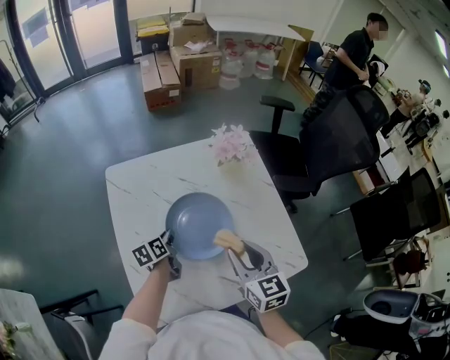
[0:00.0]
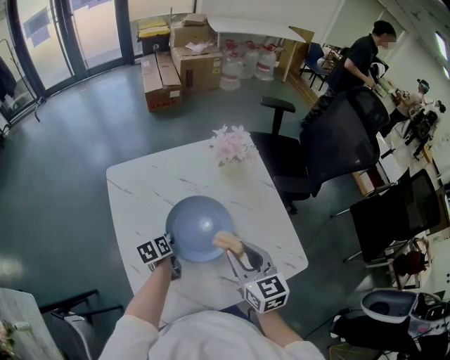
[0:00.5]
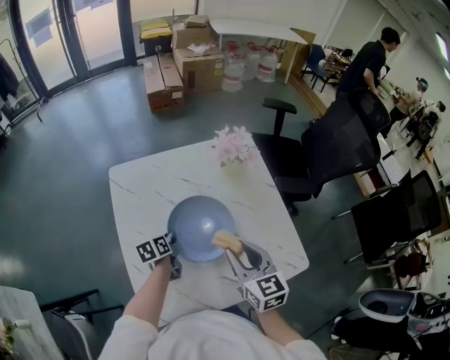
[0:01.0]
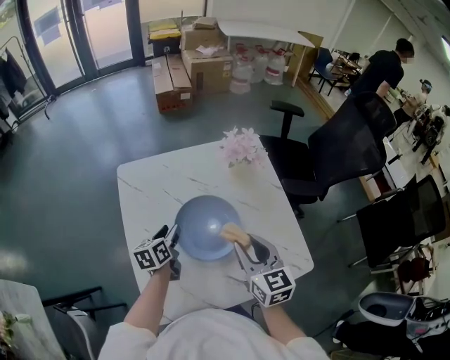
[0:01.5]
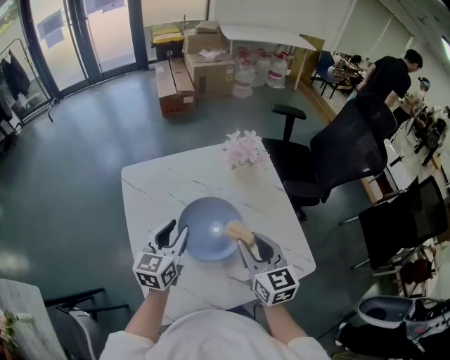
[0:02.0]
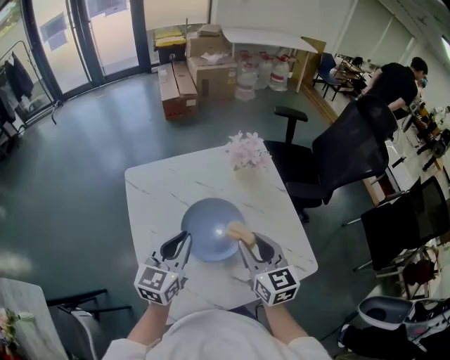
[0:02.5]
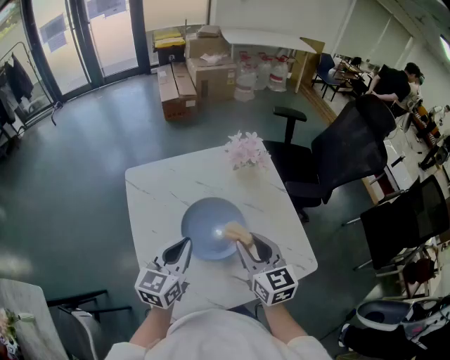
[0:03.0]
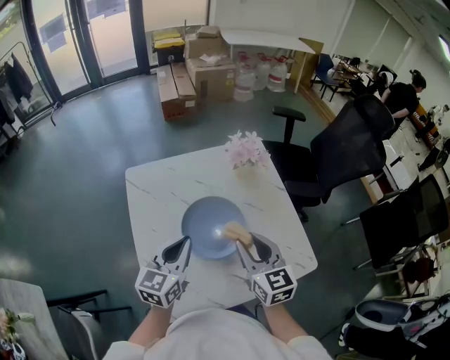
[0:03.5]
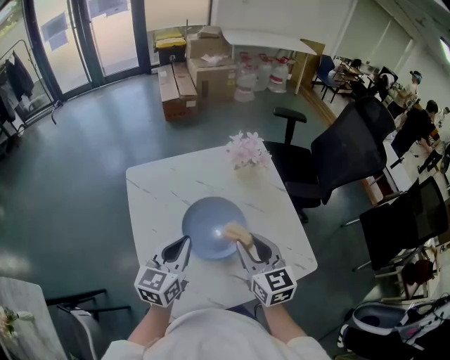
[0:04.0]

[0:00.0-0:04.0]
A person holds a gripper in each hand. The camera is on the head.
0:00.0 to 0:02.0: The left gripper heads upward, covering approximately 20 cm, changes its angle by about 50 degrees, and opens its fingers.
0:02.0 to 0:04.0: The left gripper shifts roughly 5 cm backward, and closes.

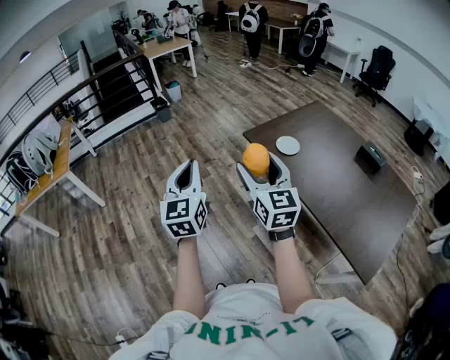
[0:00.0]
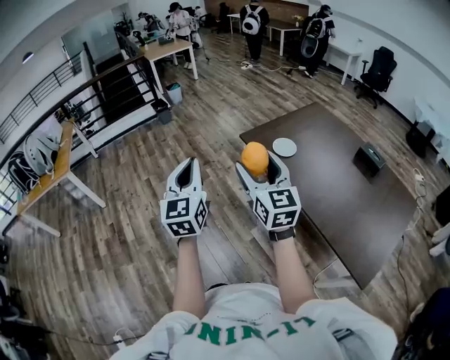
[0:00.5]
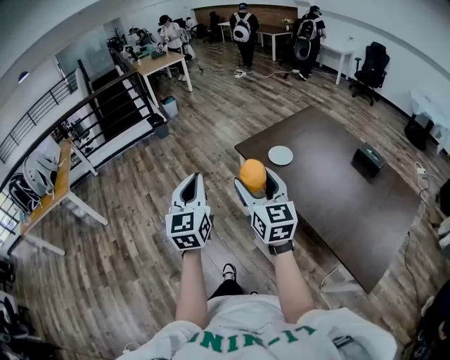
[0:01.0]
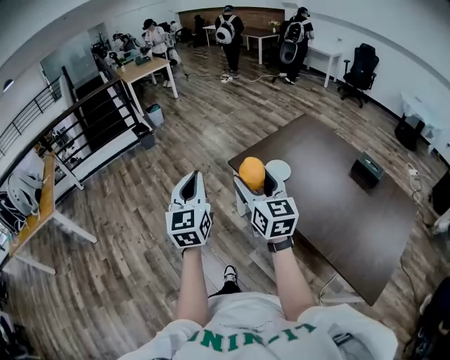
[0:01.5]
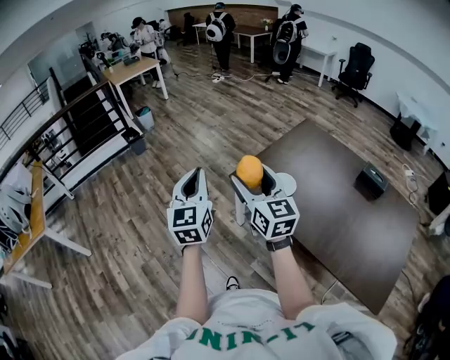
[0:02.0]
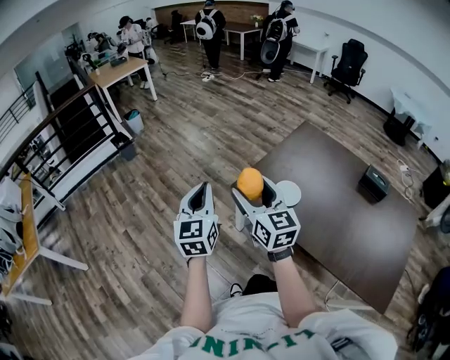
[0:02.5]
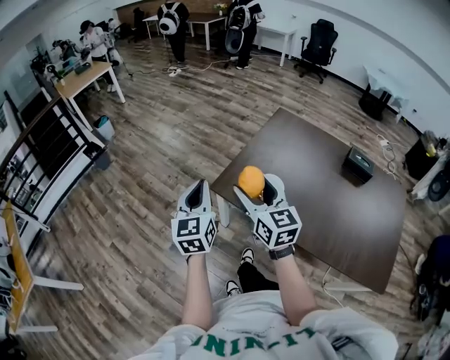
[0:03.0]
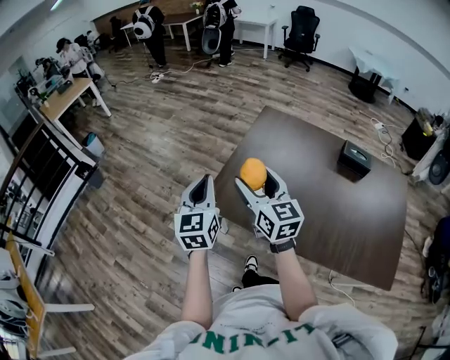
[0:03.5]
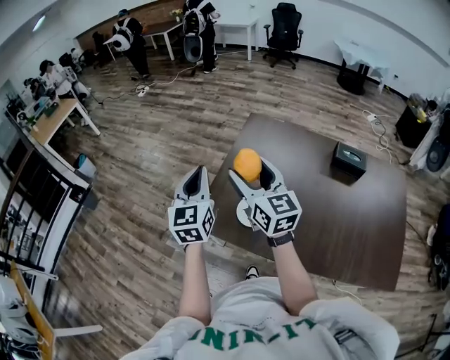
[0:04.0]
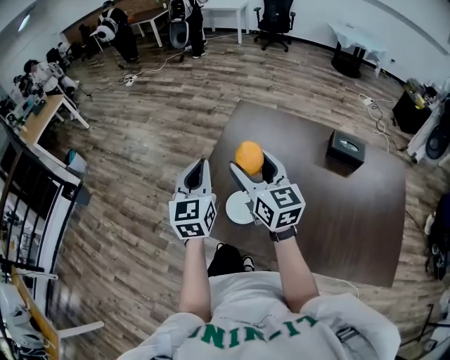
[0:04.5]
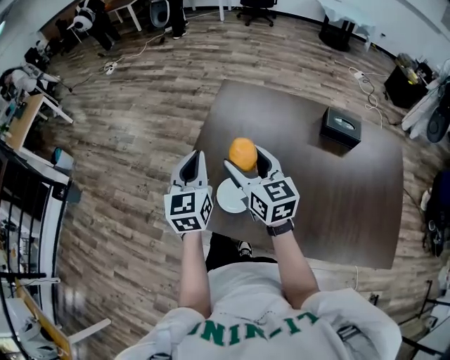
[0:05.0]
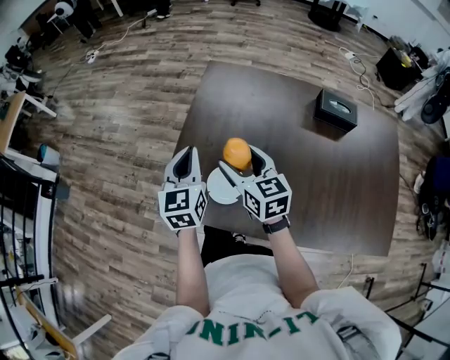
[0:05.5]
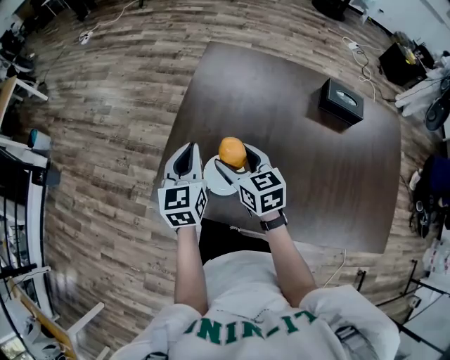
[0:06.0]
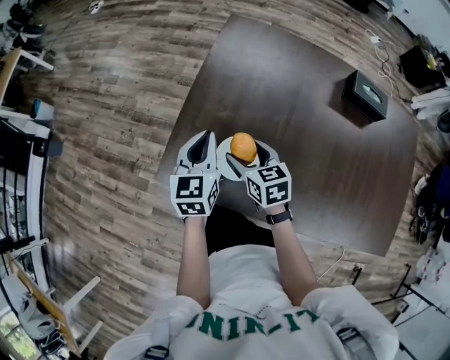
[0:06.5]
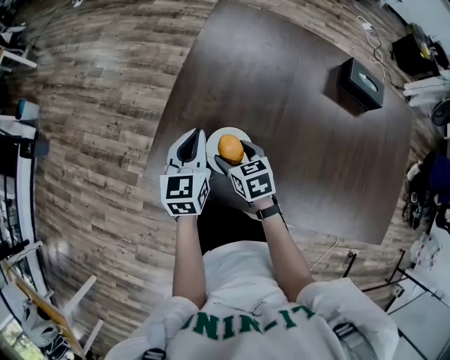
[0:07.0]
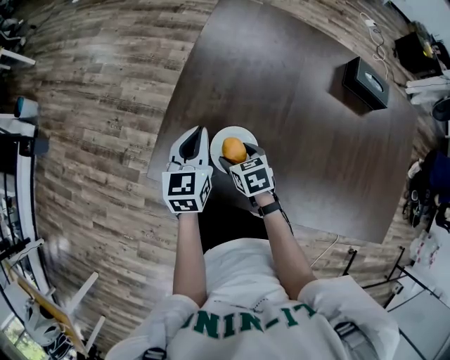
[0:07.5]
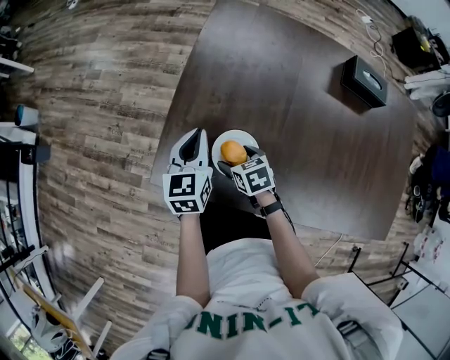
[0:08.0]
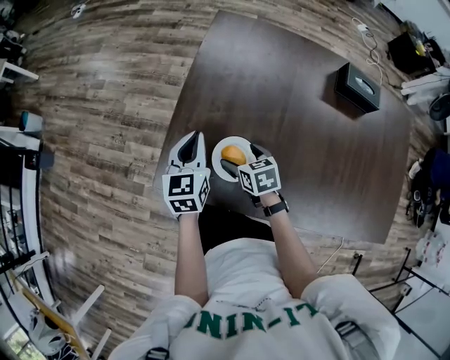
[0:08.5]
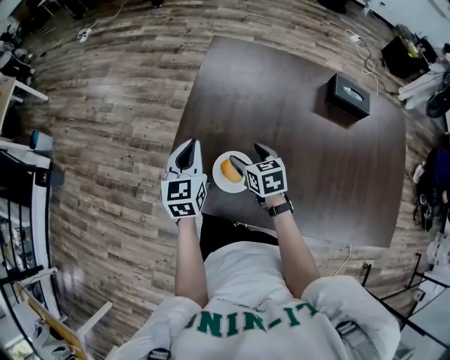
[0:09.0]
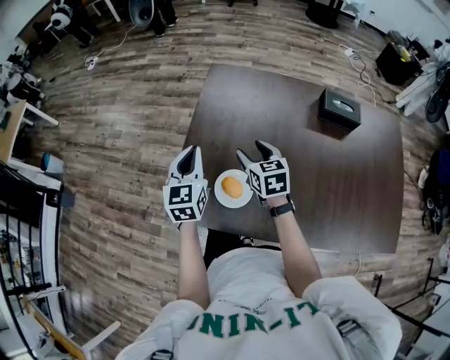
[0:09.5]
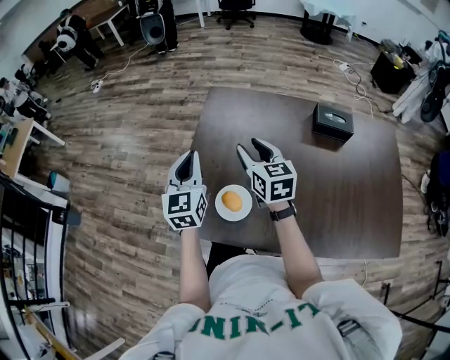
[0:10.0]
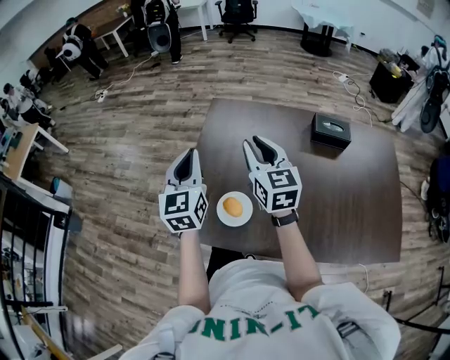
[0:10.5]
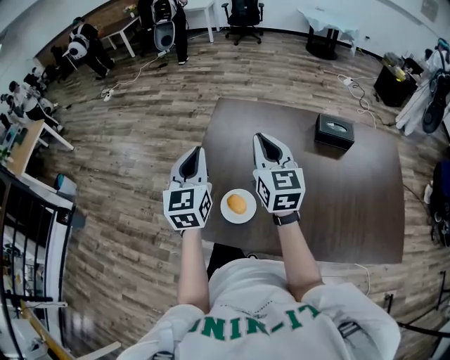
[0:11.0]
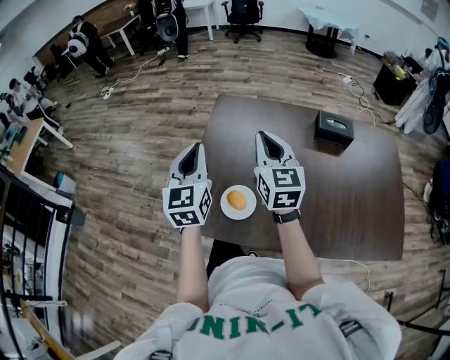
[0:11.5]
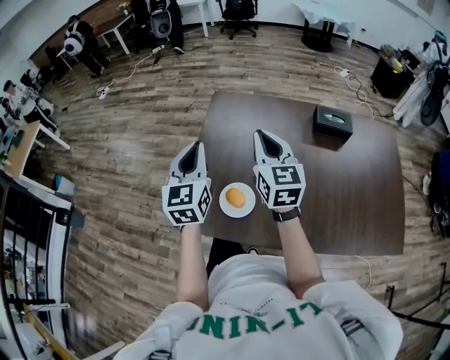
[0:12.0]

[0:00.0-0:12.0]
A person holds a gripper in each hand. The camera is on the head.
0:00.0 to 0:02.0: The grippers both shift forward by roughly 30 cm.
0:02.0 to 0:04.0: Both grippers travel together forward and to the right, about 35 cm. The left gripper changes its angle by roughly 30 degrees. Meanwhile the right gripper turns by some 20 degrees.
0:04.0 to 0:06.0: The left gripper shifts about 25 cm downward, to the right and forward; the right gripper goes about 25 cm downward, and rotates some 30 degrees.
0:06.0 to 0:08.0: The right gripper is displaced downward by about 20 cm, and changes its angle by about 30 degrees. Meanwhile the left gripper shifts some 10 cm downward.
0:08.0 to 0:10.0: The left gripper goes roughly 20 cm upward, and turns by some 20 degrees; the right gripper heads upward, covering about 30 cm, points its fingers some 40 degrees further upward, and closes its fingers.
0:10.0 to 0:12.0: The right gripper heads upward, covering approximately 10 cm, and closes its fingers, while the left gripper heads upward, covering approximately 5 cm.

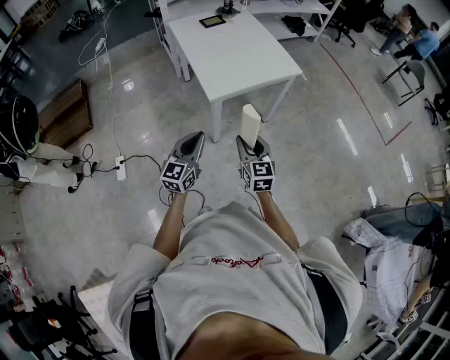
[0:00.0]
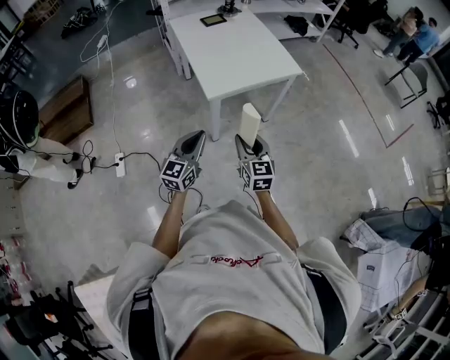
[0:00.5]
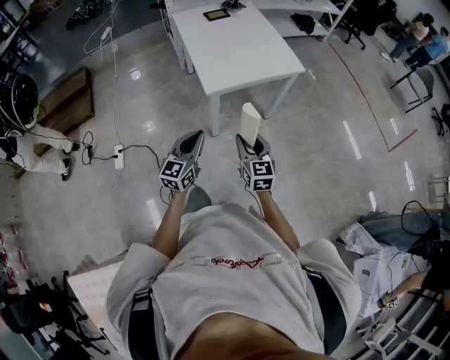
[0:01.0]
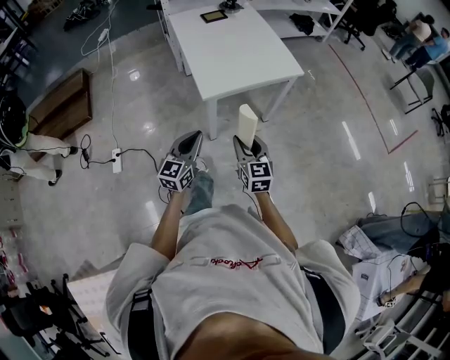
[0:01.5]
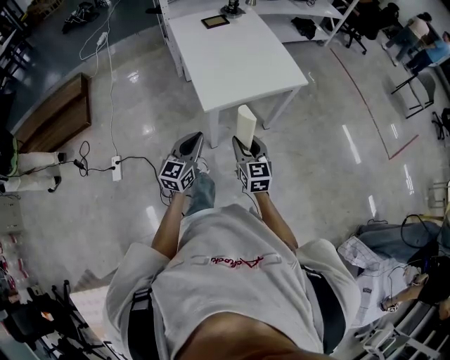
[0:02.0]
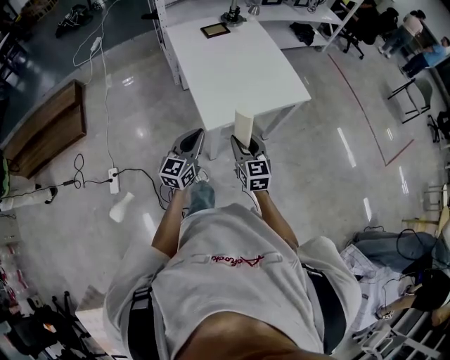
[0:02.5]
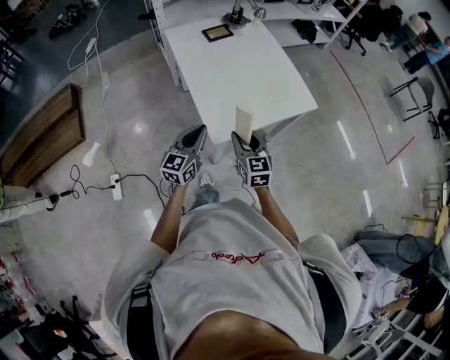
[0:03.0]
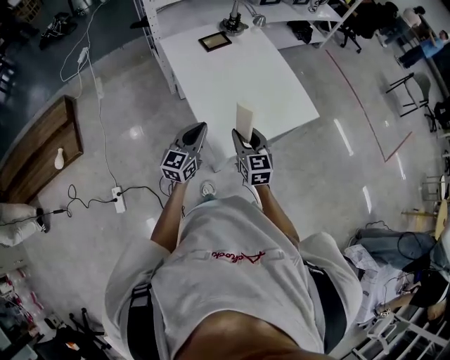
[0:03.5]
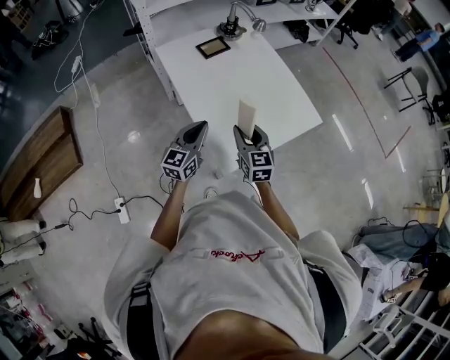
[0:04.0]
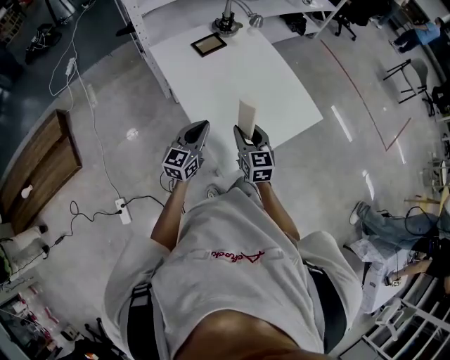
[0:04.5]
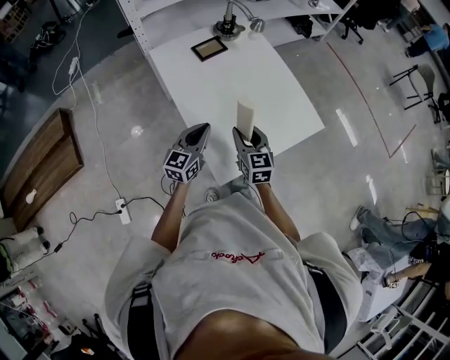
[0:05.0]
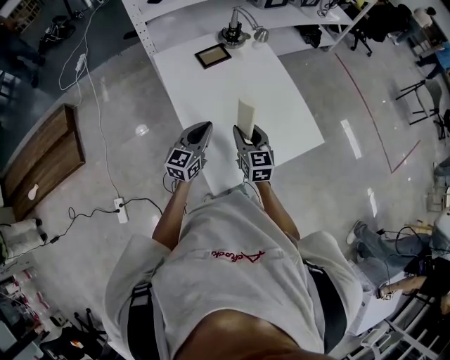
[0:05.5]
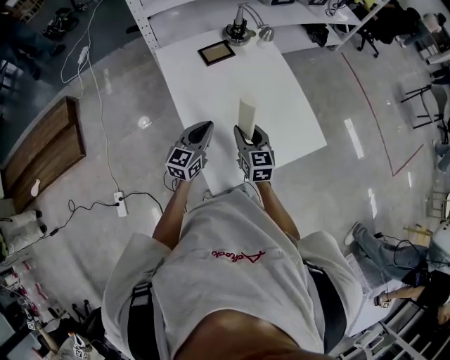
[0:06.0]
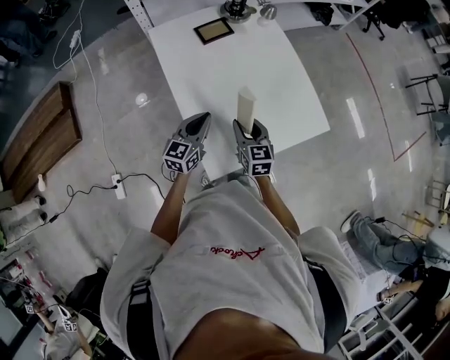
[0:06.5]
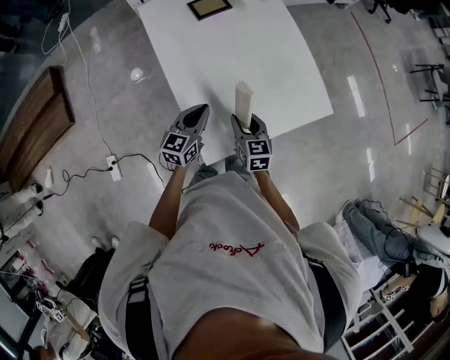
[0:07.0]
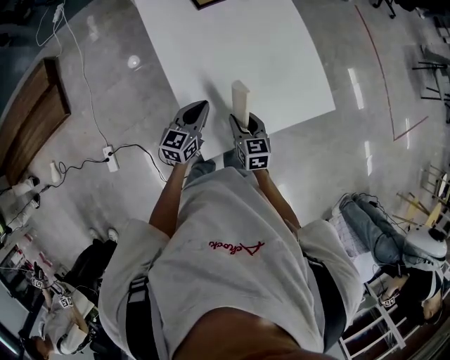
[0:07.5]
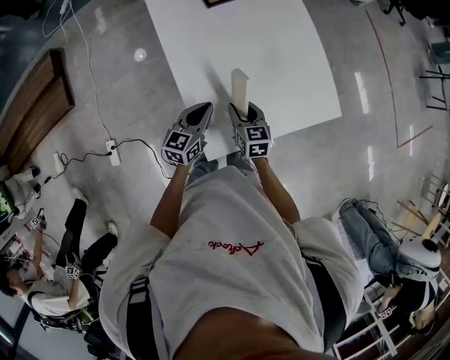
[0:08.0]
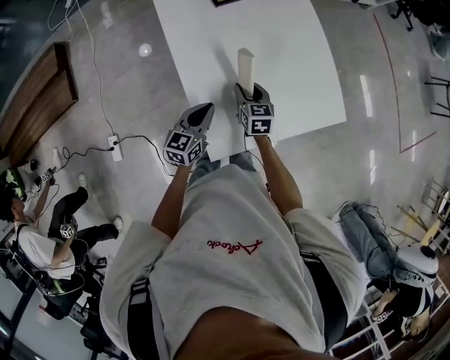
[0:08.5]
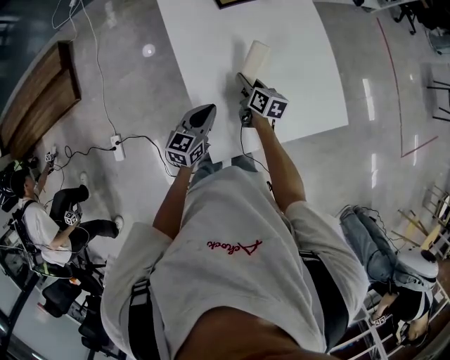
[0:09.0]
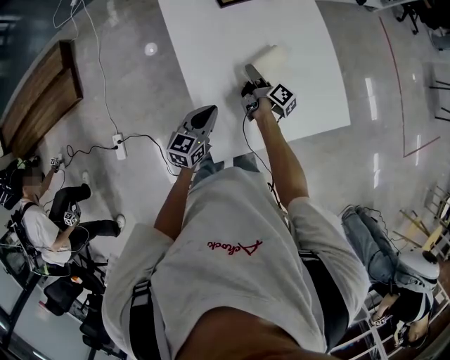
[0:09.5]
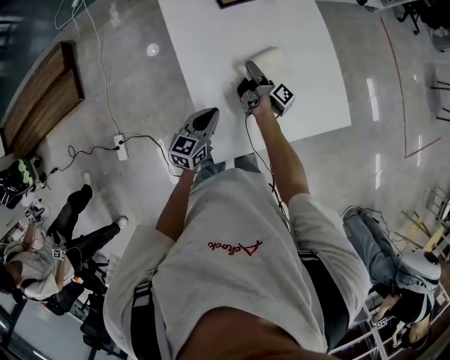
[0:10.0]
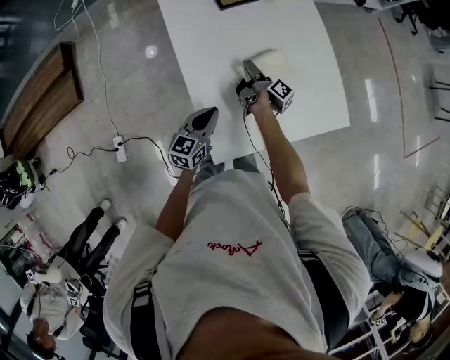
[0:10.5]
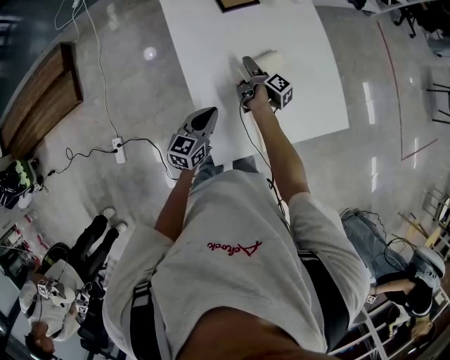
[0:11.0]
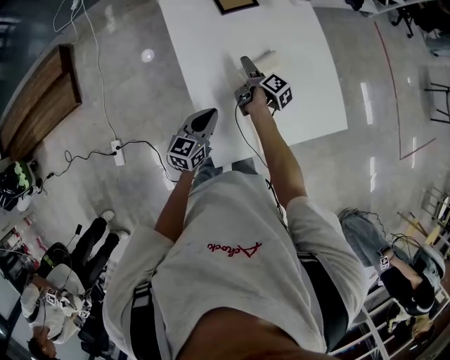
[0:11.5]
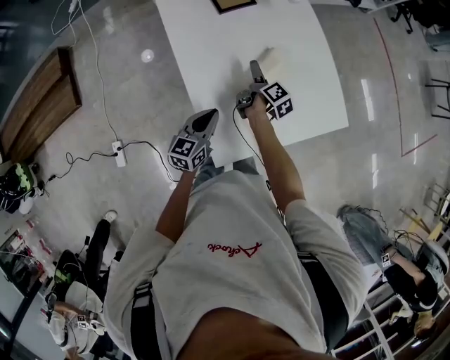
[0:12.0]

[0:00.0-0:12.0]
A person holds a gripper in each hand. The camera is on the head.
0:00.0 to 0:02.0: The grippers both shift forward by approximately 10 cm.
0:02.0 to 0:04.0: Both grippers move forward, approximately 30 cm.
0:04.0 to 0:06.0: The two grippers go some 10 cm forward.
0:06.0 to 0:08.0: Both grippers move downward, some 10 cm.
0:08.0 to 0:10.0: The right gripper shifts roughly 15 cm forward, and rotates around the line of its fingers by about 90 degrees, clockwise from behind.
0:10.0 to 0:12.0: The right gripper swivels some 30 degrees, and opens its fingers.
